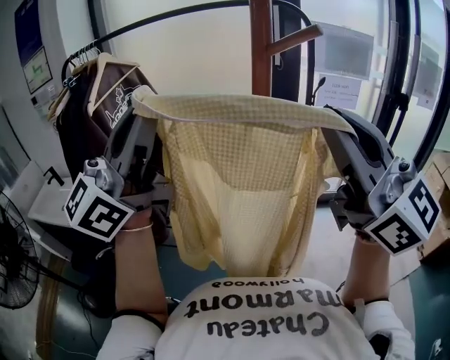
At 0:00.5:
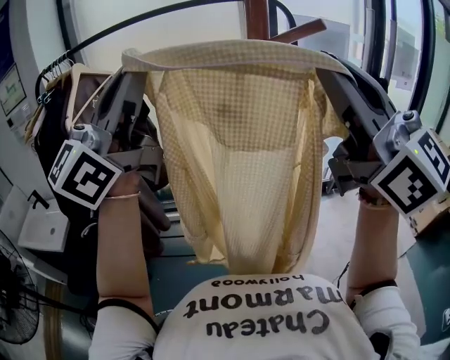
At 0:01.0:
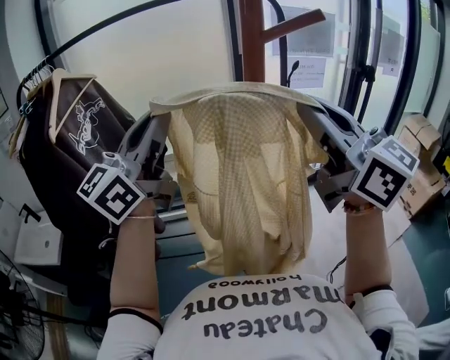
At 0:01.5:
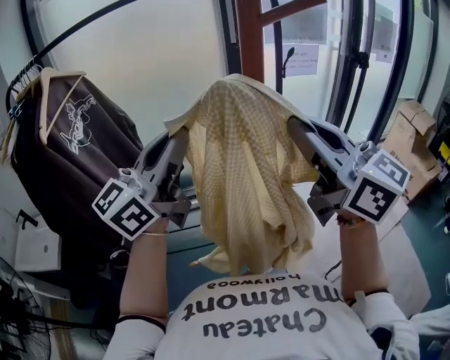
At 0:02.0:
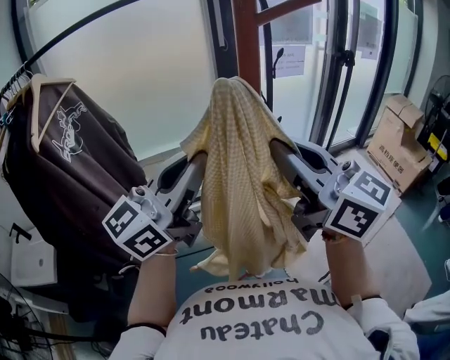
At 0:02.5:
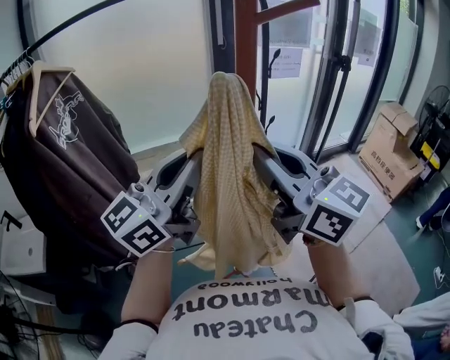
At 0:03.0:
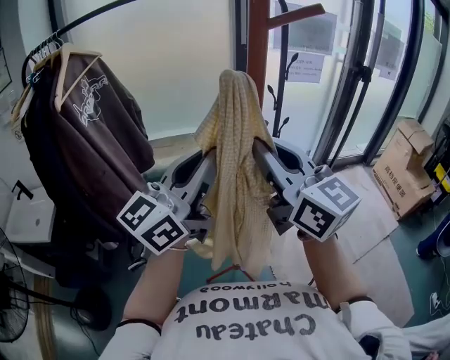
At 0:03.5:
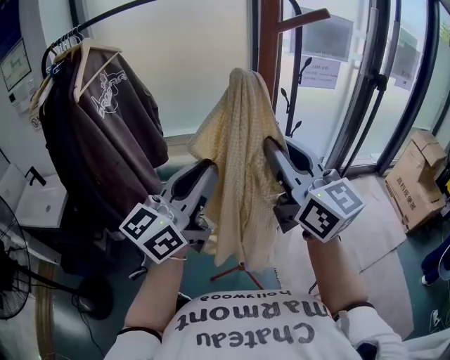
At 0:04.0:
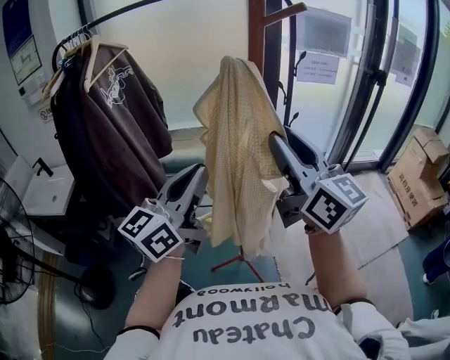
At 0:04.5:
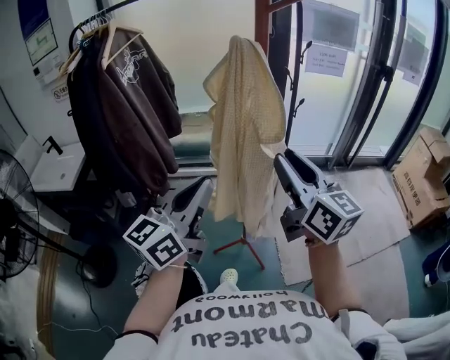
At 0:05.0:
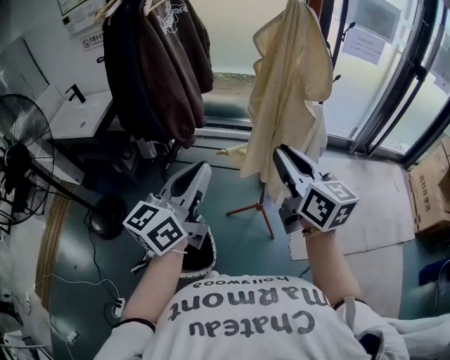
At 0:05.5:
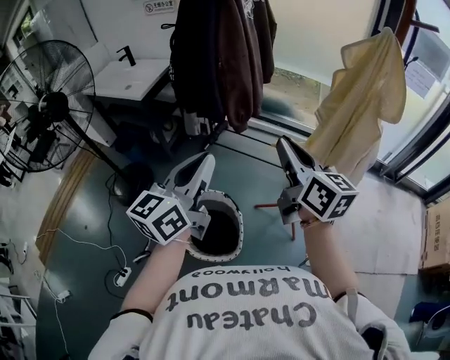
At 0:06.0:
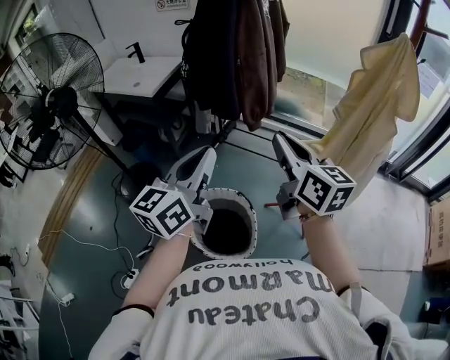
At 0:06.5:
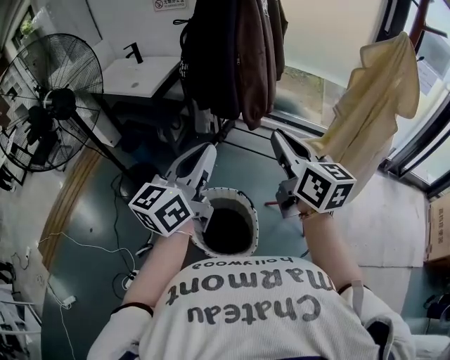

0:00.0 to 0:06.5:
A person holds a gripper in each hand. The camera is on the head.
0:00.0 to 0:02.0: The right gripper goes some 15 cm downward and to the left, and rotates about 20 degrees. The left gripper travels downward and forward by some 15 cm, and swivels about 30 degrees.
0:02.0 to 0:04.5: The right gripper moves backward and downward, approximately 15 cm. The left gripper moves backward and downward, roughly 25 cm, and changes its angle by about 30 degrees.
0:04.5 to 0:06.5: Both grippers move to the left, some 35 cm. The left gripper changes its angle by approximately 30 degrees. Meanwhile the right gripper turns by about 20 degrees.

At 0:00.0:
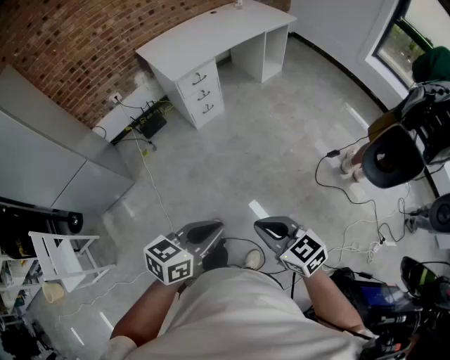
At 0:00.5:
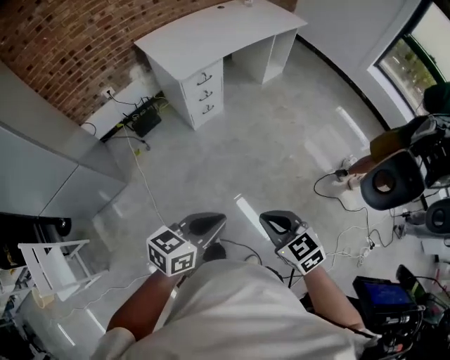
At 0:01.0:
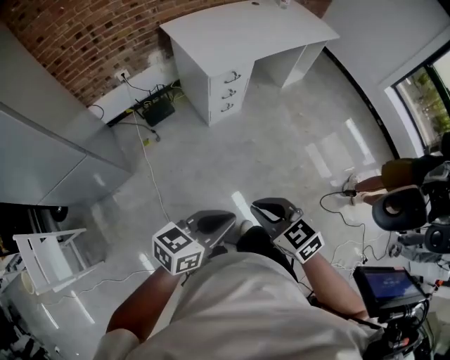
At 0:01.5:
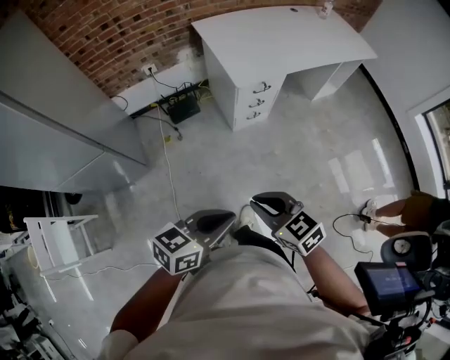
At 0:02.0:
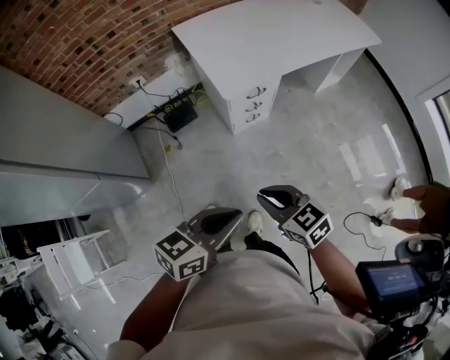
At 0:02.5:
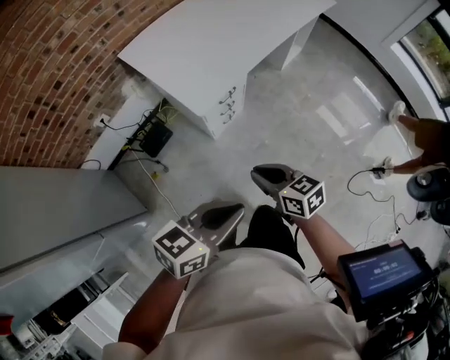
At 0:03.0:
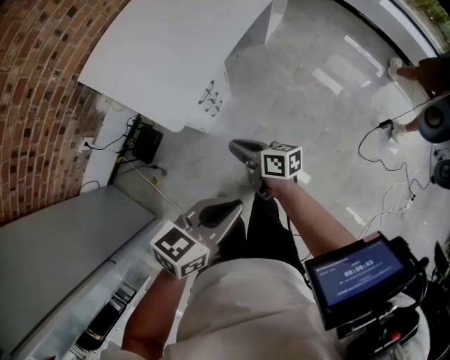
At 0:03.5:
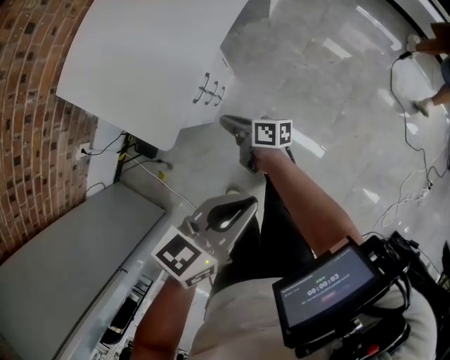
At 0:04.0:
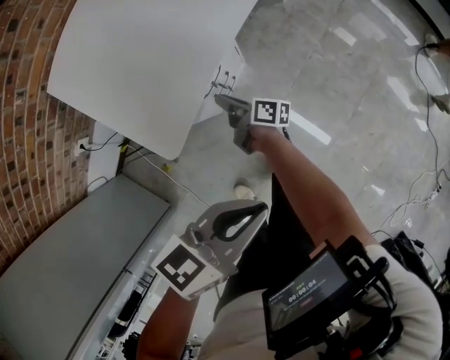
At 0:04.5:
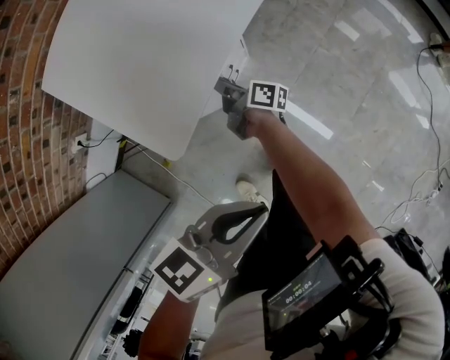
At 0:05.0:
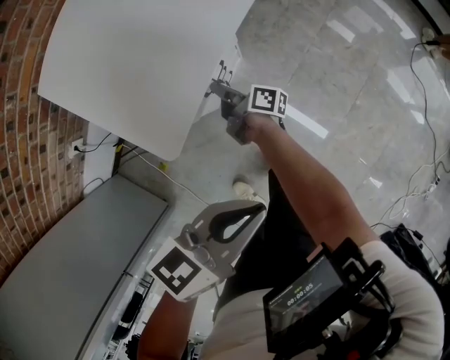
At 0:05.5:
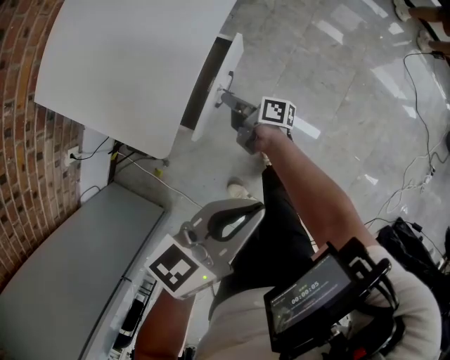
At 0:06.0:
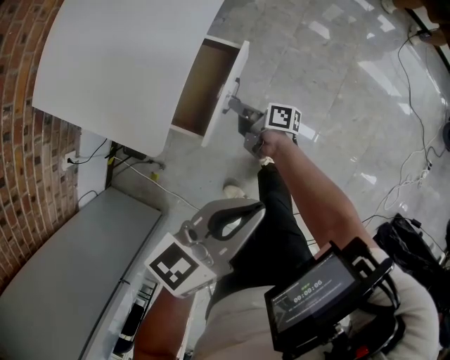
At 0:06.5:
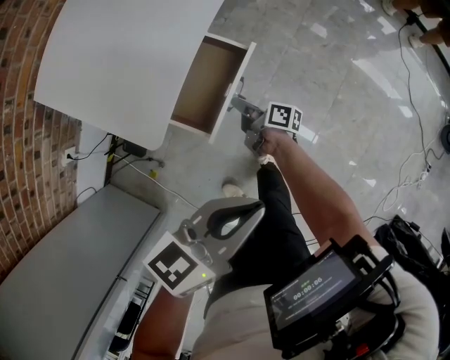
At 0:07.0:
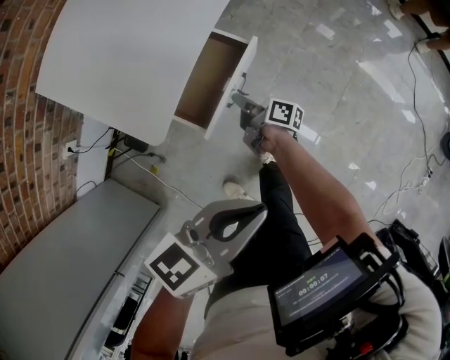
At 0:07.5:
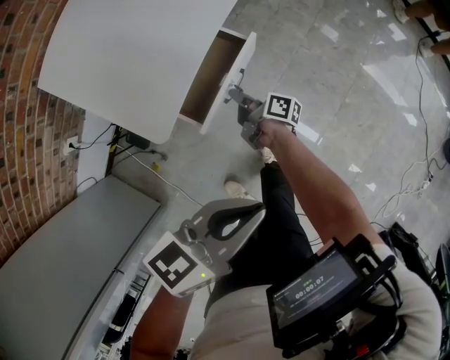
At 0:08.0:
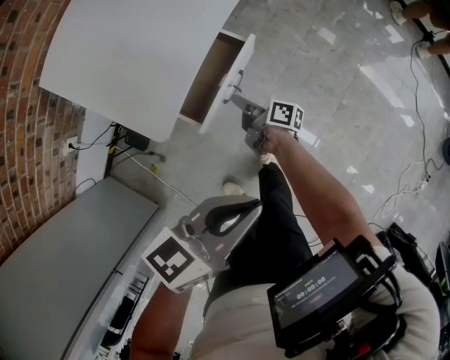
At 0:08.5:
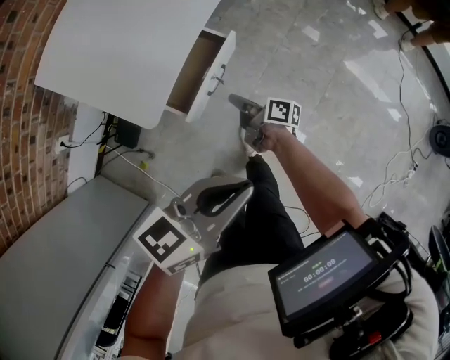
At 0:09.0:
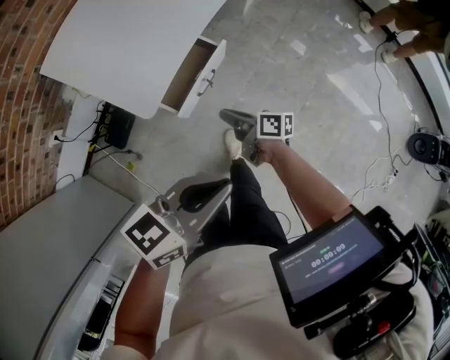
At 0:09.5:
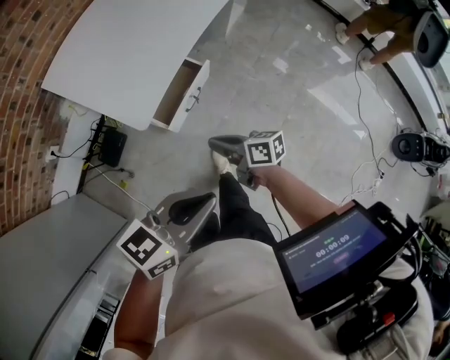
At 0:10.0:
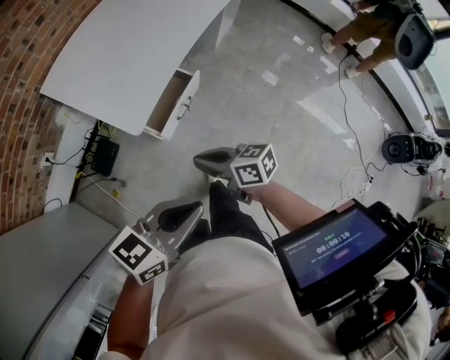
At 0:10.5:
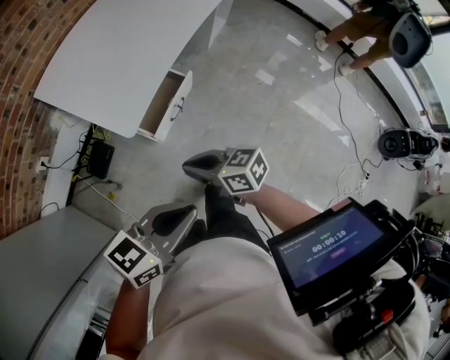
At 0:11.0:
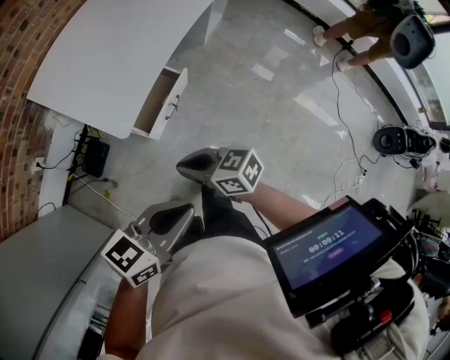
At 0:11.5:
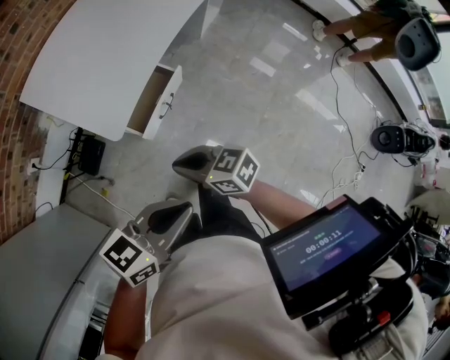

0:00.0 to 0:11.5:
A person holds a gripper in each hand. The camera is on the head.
0:00.0 to 0:02.0: Both grippers are carried forward and to the left, approximately 50 cm.
0:02.0 to 0:04.0: The right gripper changes place by approximately 60 cm, and rolls clockwise, seen from behind, by some 70 degrees; the left gripper changes place by about 35 cm, and swivels some 30 degrees.
0:04.0 to 0:06.0: The right gripper goes roughly 10 cm to the right.
0:06.0 to 0:07.5: The grippers make only small movements.
0:07.5 to 0:09.5: The left gripper heads upward and backward, covering about 15 cm, while the right gripper heads upward and backward, covering some 30 cm, and rotates approximately 40 degrees.
0:09.5 to 0:11.5: The right gripper shifts approximately 5 cm upward, and turns by roughly 30 degrees.

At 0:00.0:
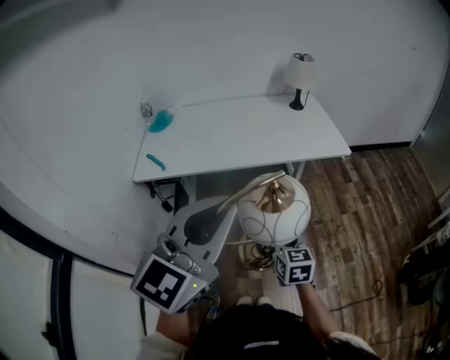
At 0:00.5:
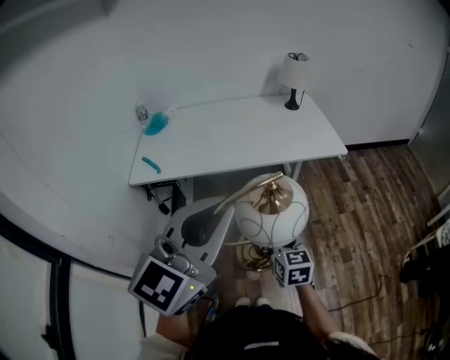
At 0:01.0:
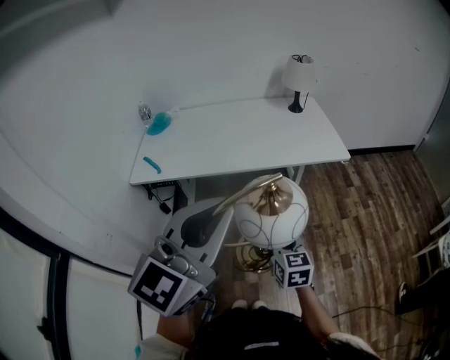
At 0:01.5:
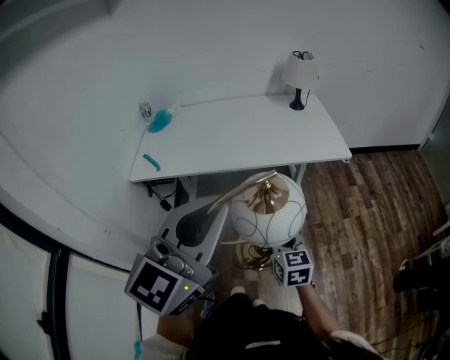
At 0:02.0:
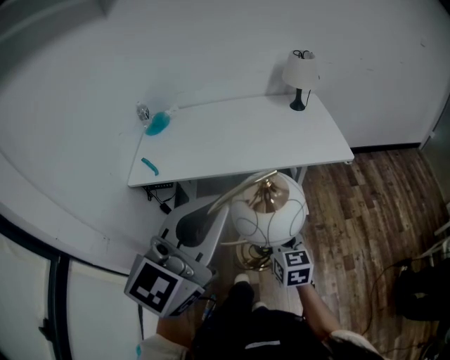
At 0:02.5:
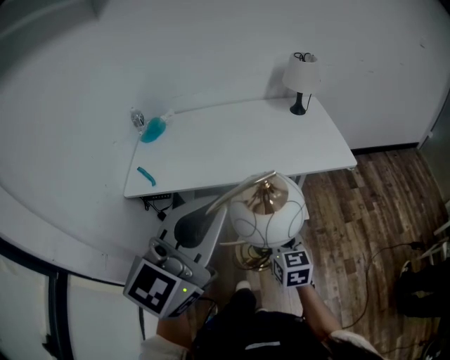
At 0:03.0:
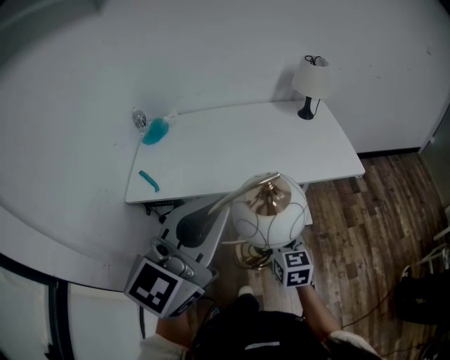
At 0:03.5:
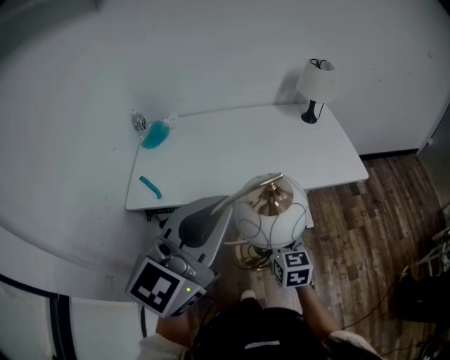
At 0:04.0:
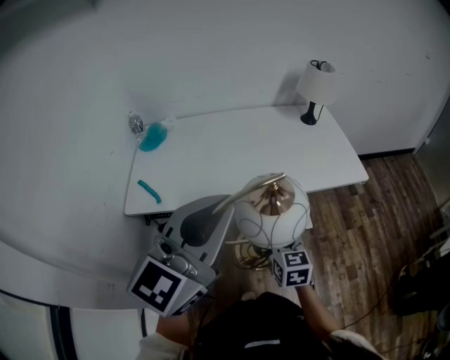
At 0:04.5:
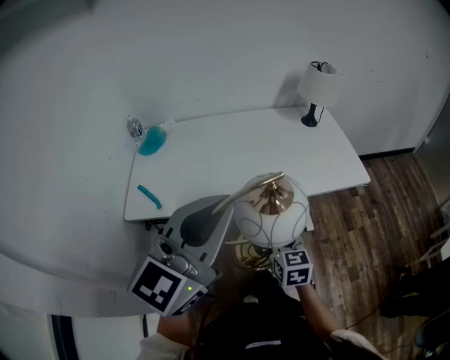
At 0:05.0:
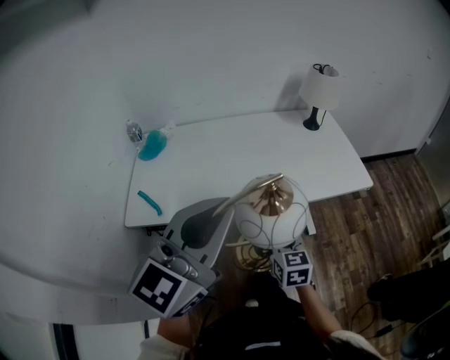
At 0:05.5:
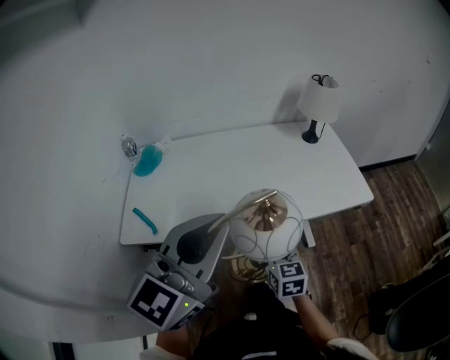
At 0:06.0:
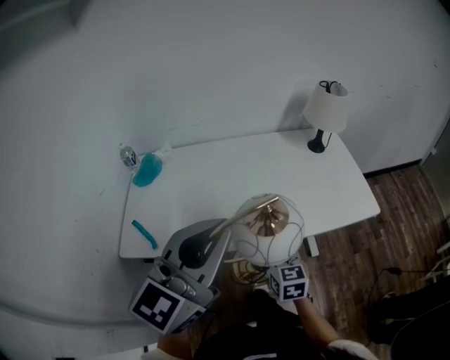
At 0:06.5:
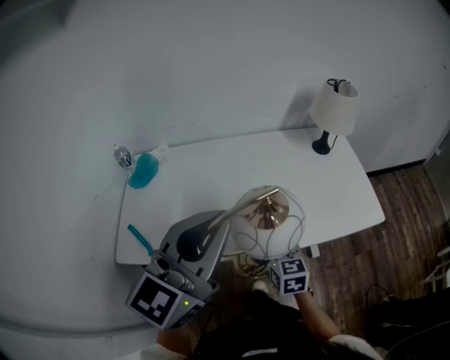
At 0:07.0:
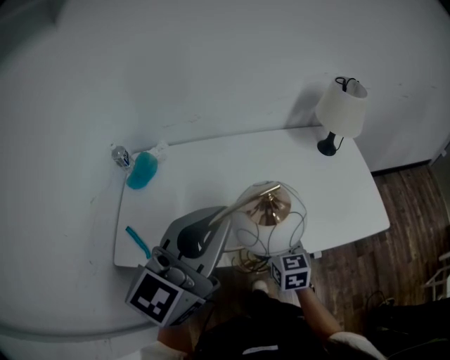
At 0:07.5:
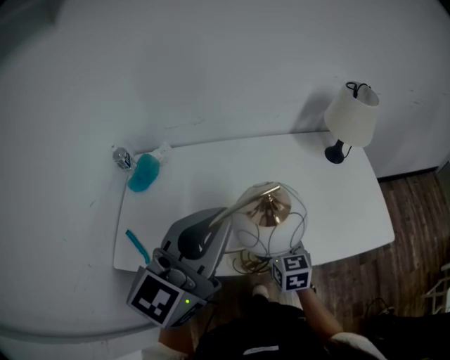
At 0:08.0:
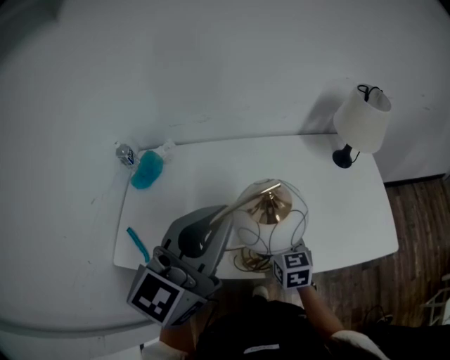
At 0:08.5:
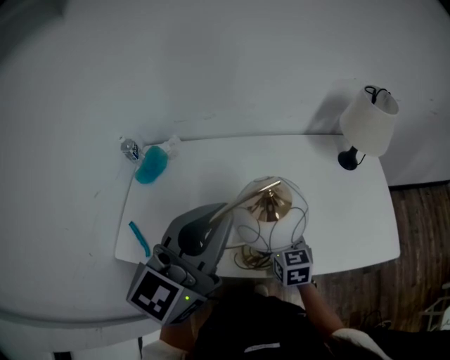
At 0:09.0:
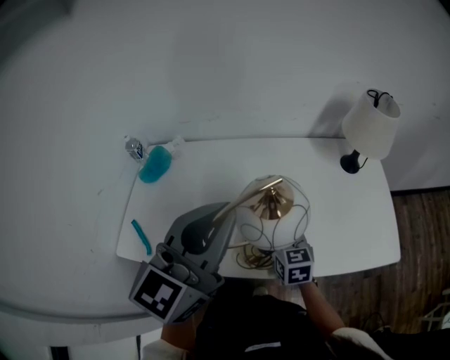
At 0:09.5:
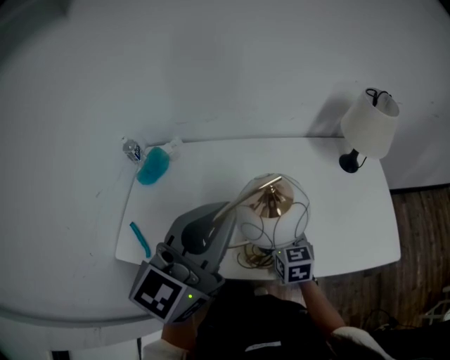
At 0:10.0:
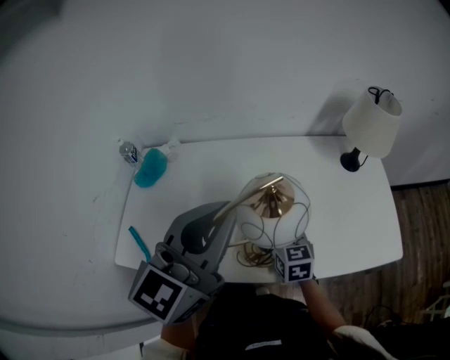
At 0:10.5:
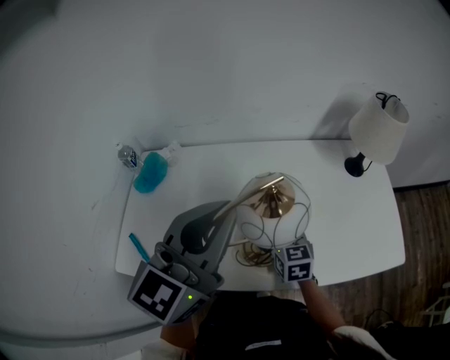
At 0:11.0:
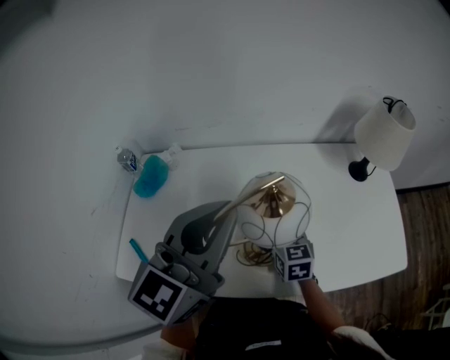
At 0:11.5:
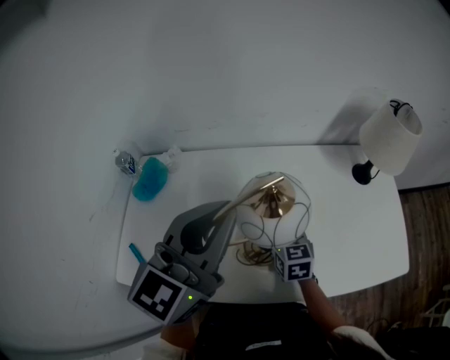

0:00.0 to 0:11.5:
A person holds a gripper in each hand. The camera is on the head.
0:00.0 to 0:02.0: Both grippers travel together forward, about 5 cm.
0:02.0 to 0:04.0: Both grippers move forward and to the left, roughly 20 cm.
0:04.0 to 0:06.0: Both grippers travel together forward, some 15 cm.
0:06.0 to 0:07.5: The grippers both shift forward by approximately 15 cm.
0:07.5 to 0:09.5: The right gripper shifts some 5 cm forward.
0:09.5 to 0:11.5: Both grippers move forward, about 10 cm.
